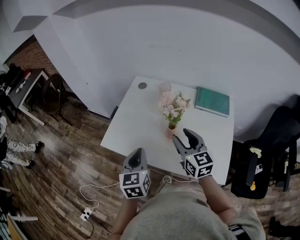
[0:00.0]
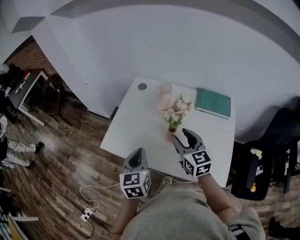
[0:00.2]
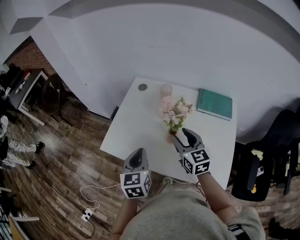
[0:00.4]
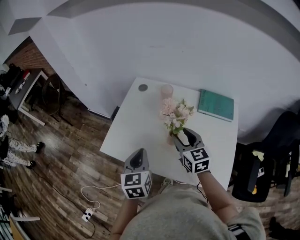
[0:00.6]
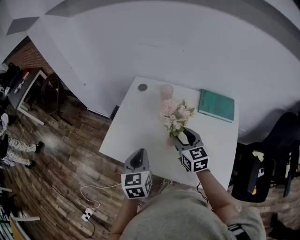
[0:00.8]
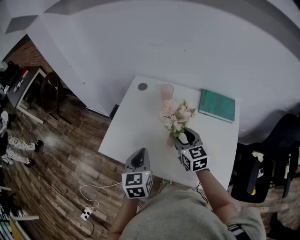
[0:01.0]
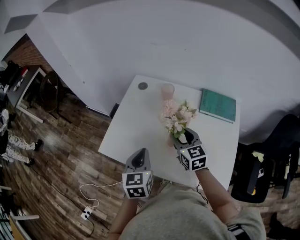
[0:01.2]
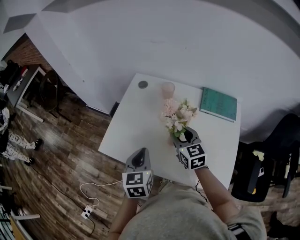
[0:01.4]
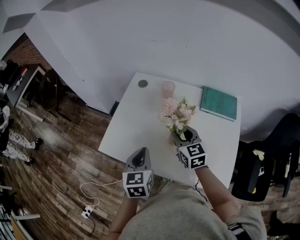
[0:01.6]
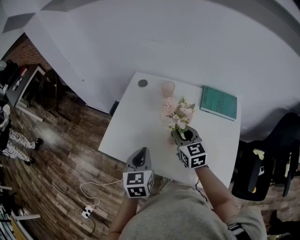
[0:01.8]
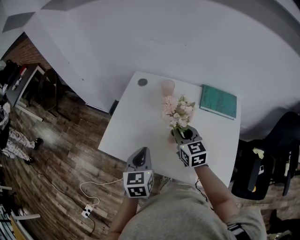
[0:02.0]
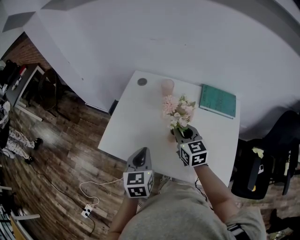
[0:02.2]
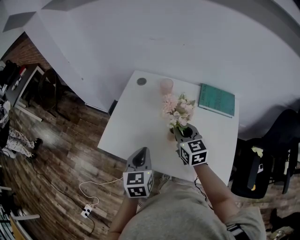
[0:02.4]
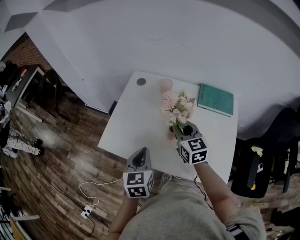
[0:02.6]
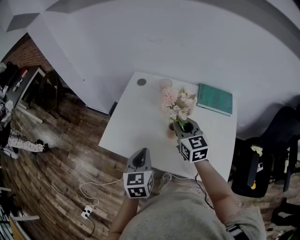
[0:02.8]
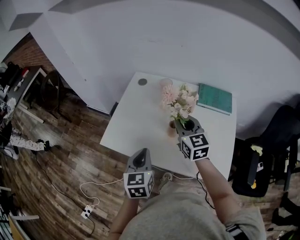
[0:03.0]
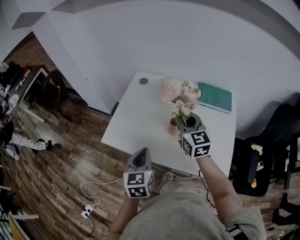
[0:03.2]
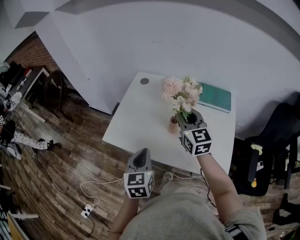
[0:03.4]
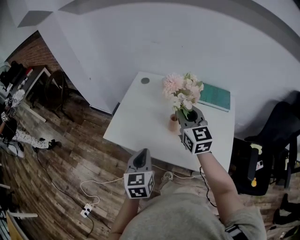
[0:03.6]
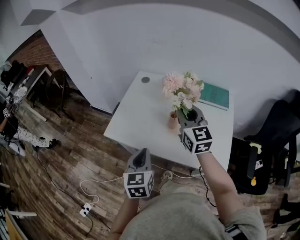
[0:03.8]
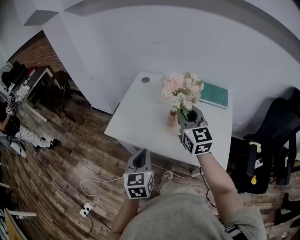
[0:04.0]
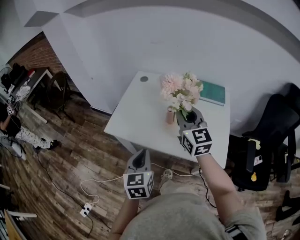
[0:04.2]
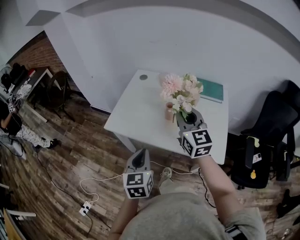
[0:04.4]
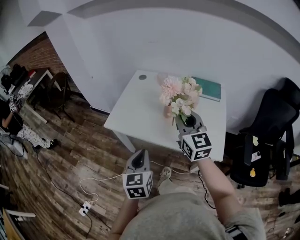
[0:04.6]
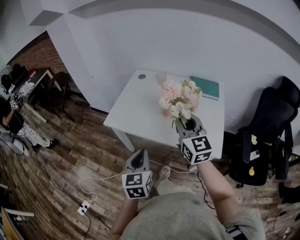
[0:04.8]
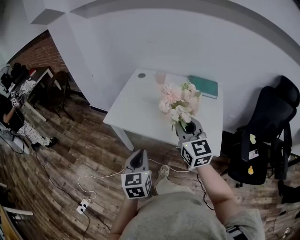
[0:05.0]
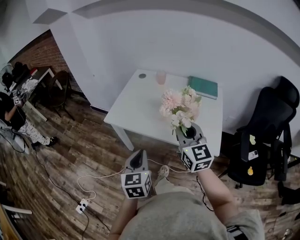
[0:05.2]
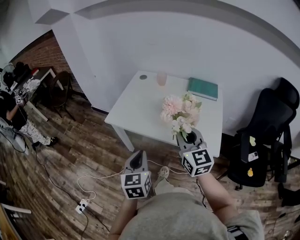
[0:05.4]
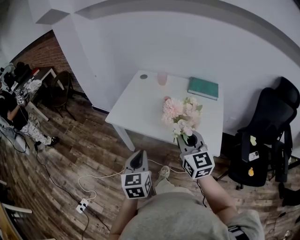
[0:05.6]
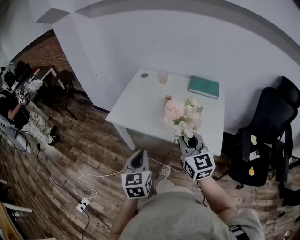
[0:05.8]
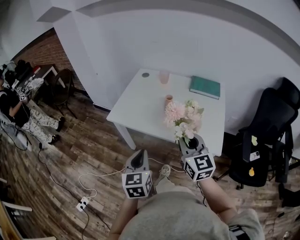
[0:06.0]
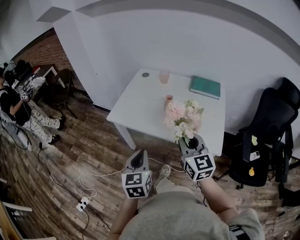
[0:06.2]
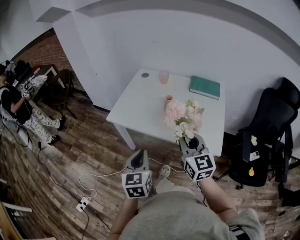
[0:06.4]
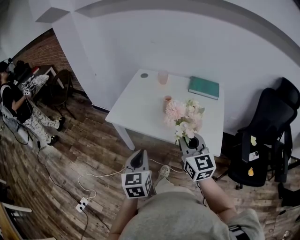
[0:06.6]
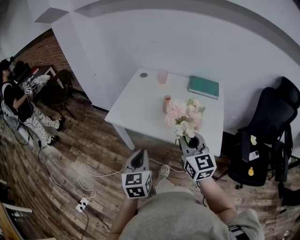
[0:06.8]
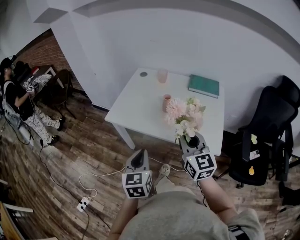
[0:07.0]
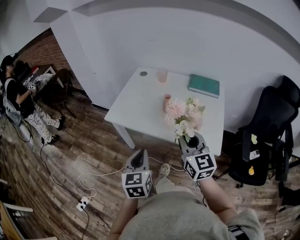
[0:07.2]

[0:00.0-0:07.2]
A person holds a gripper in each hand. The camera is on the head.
0.0 to 1.4 s: The left gripper is displaced forward by roughly 5 cm, while the right gripper goes roughly 10 cm forward and downward.
1.4 to 2.8 s: The right gripper heads upward, covering approximately 5 cm, and closes its fingers; the left gripper is displaced backward by about 5 cm.
2.8 to 4.4 s: The right gripper moves backward and upward, some 20 cm; the left gripper heads backward, covering roughly 15 cm.
4.4 to 5.8 s: The right gripper heads backward, covering roughly 15 cm, while the left gripper heads backward, covering approximately 10 cm.
5.8 to 7.2 s: Both grippers stay put.

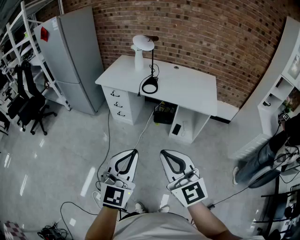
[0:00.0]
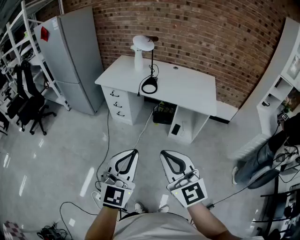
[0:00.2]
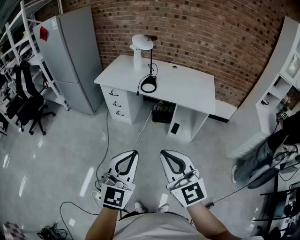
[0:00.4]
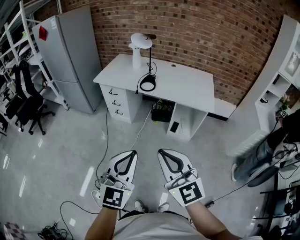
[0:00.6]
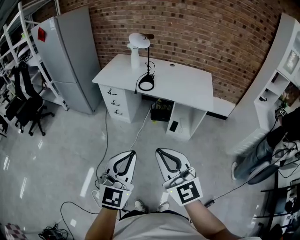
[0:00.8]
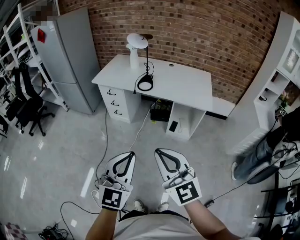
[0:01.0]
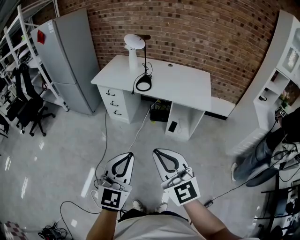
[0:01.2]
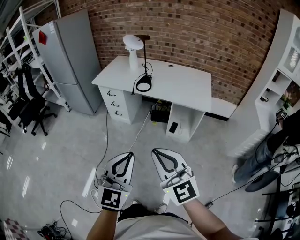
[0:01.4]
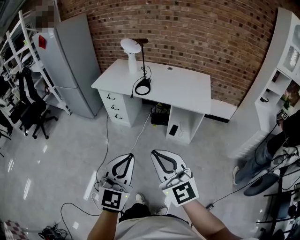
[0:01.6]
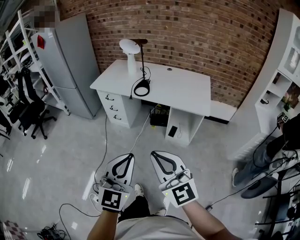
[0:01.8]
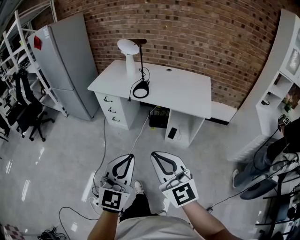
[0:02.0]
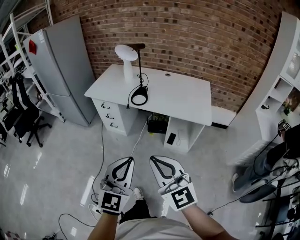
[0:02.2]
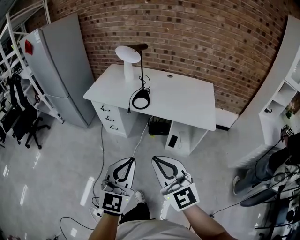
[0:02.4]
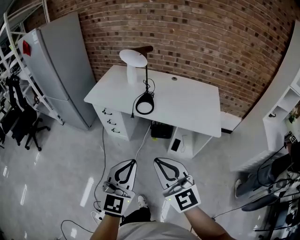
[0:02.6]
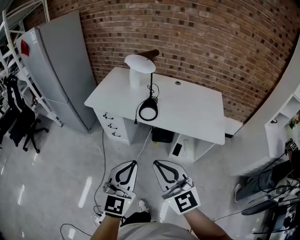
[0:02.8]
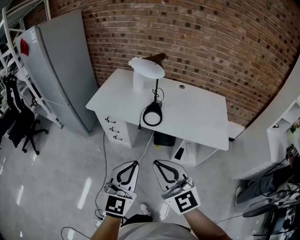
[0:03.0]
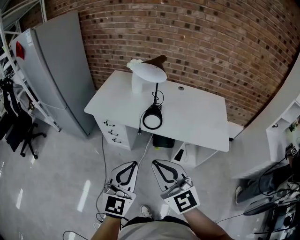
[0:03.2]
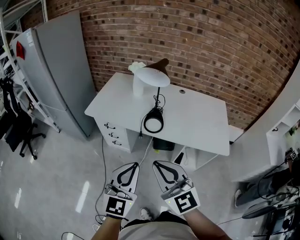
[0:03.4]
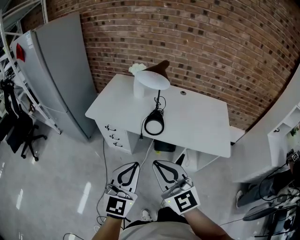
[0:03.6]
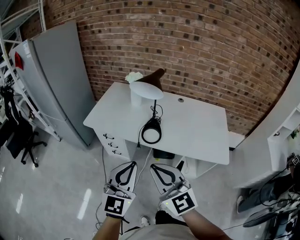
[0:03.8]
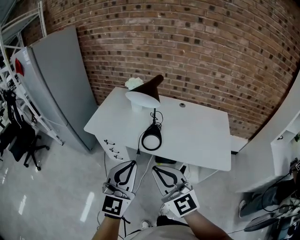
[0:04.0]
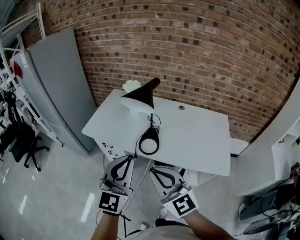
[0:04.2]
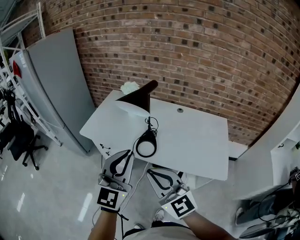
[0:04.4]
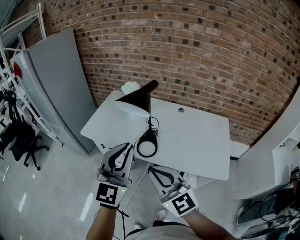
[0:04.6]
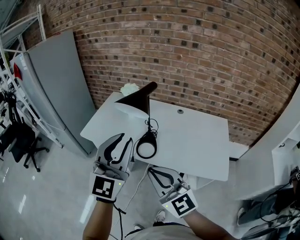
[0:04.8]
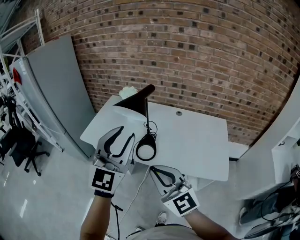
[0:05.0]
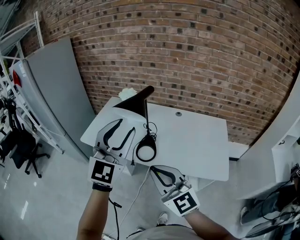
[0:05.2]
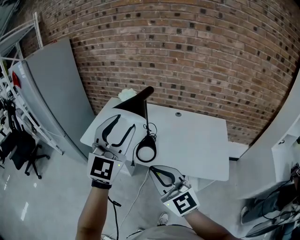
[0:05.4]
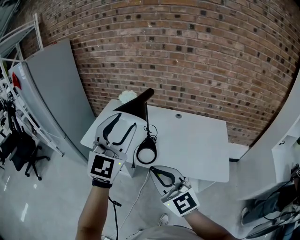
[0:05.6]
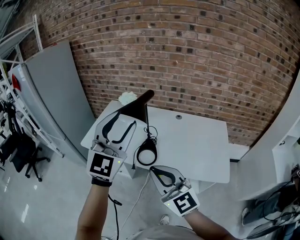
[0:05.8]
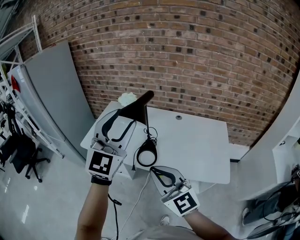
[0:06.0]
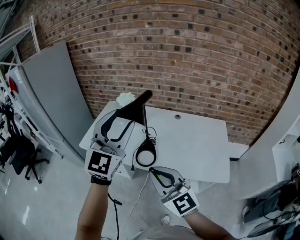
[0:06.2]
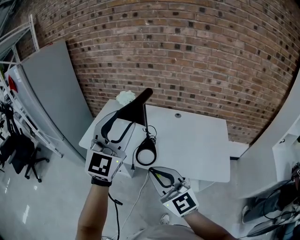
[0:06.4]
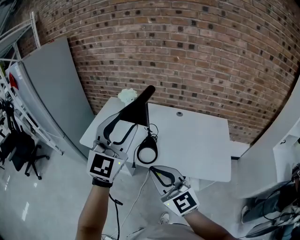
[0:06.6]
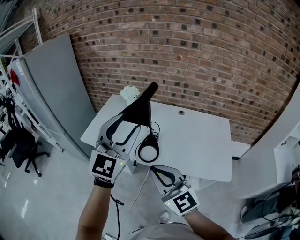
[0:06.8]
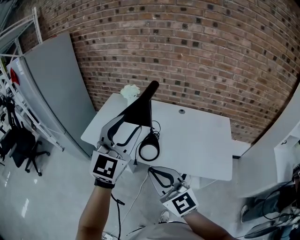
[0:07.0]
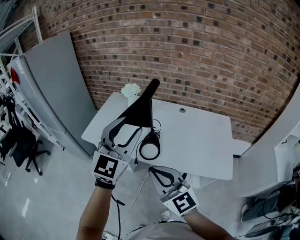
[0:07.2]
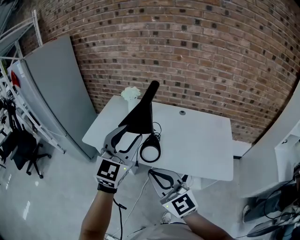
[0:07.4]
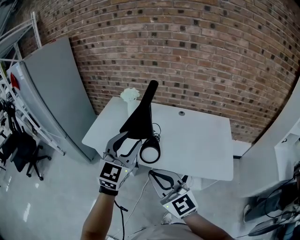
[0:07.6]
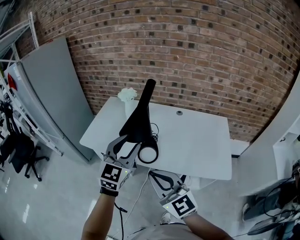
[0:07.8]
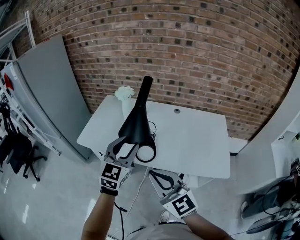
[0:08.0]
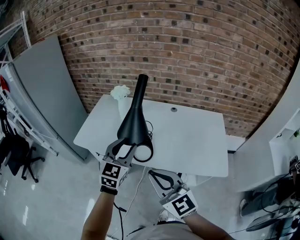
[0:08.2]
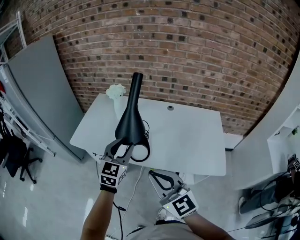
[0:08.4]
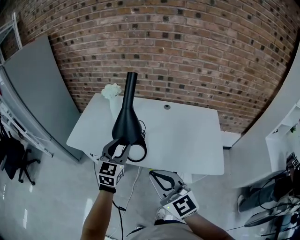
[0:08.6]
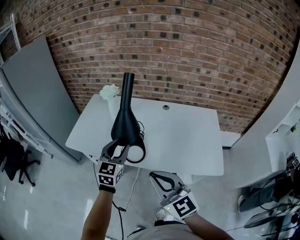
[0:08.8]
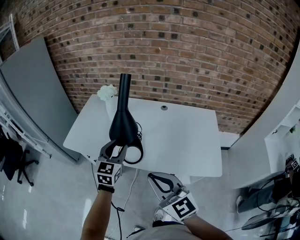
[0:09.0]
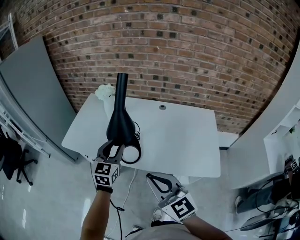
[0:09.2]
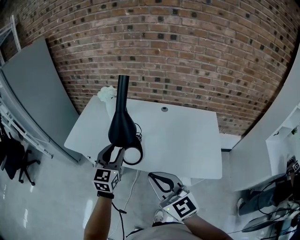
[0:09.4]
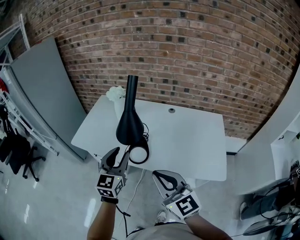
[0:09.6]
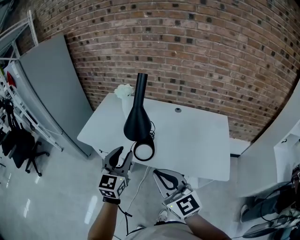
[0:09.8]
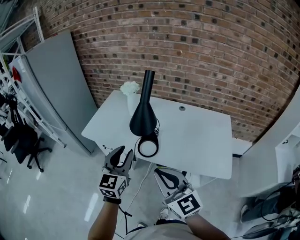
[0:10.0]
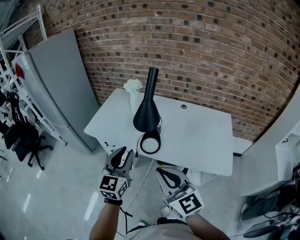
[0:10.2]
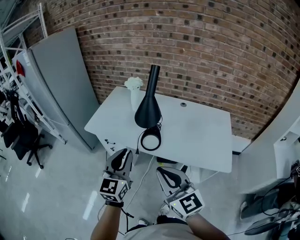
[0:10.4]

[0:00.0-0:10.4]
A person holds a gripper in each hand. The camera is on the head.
0.0 to 1.4 s: The left gripper changes place by about 5 cm.
1.4 to 3.0 s: Both grippers travel together forward, some 35 cm.
3.0 to 4.4 s: The left gripper goes approximately 20 cm forward and upward. Meanwhile the right gripper goes about 15 cm forward.
4.4 to 6.0 s: The left gripper heads upward and forward, covering approximately 15 cm, and opens its fingers.
6.0 to 7.4 s: The left gripper shifts roughly 10 cm downward.
7.4 to 9.0 s: The right gripper goes about 10 cm to the right; the left gripper heads downward and forward, covering about 20 cm, and swivels some 20 degrees.
9.0 to 10.4 s: The left gripper shifts roughly 20 cm backward, to the left and upward, and closes up, while the right gripper heads backward and to the left, covering about 10 cm.

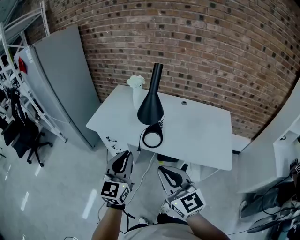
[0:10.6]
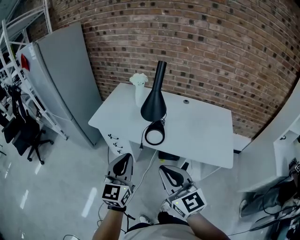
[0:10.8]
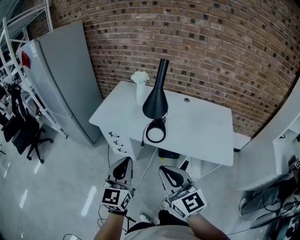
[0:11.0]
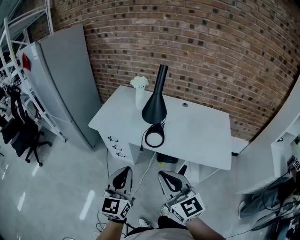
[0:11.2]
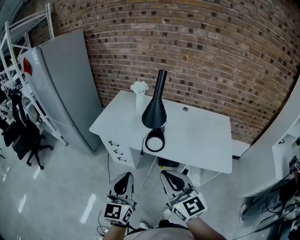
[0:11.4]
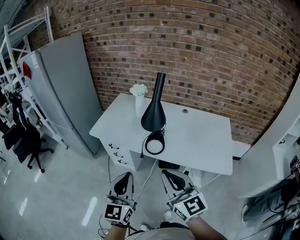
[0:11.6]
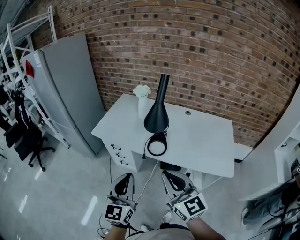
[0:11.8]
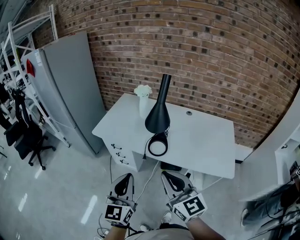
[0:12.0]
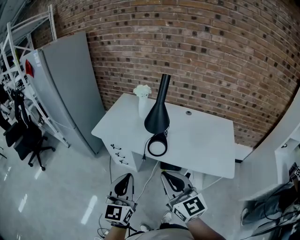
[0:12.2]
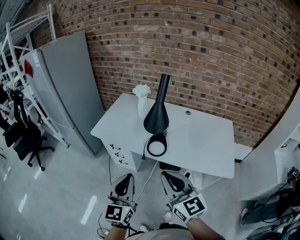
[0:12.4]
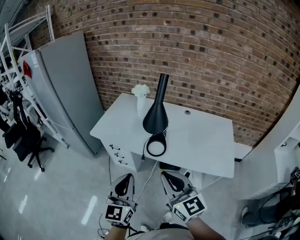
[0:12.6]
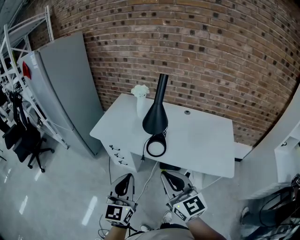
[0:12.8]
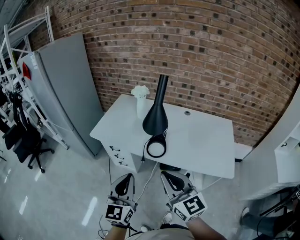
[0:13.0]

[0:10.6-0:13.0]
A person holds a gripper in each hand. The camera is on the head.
10.6 to 11.8 s: The left gripper is displaced backward by approximately 5 cm.
11.8 to 13.0 s: There are only small adjustments of the grippers.

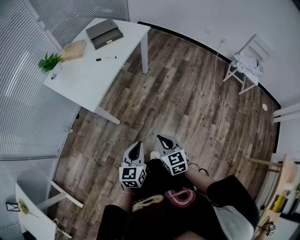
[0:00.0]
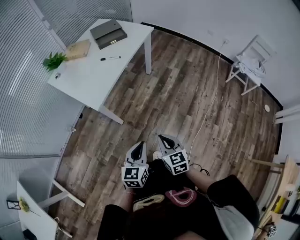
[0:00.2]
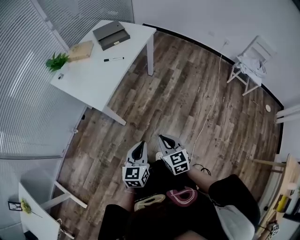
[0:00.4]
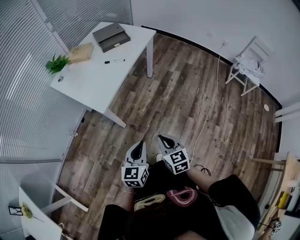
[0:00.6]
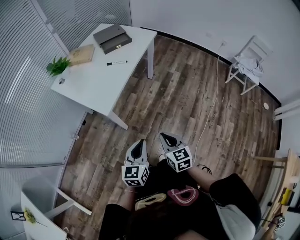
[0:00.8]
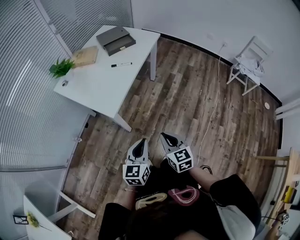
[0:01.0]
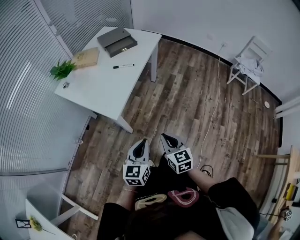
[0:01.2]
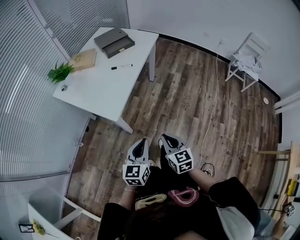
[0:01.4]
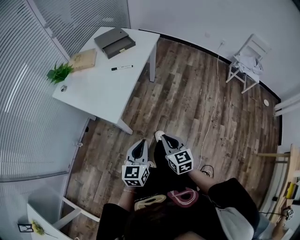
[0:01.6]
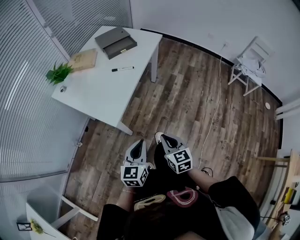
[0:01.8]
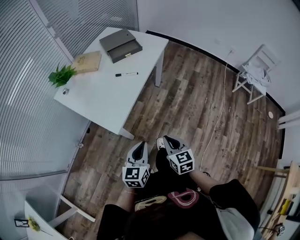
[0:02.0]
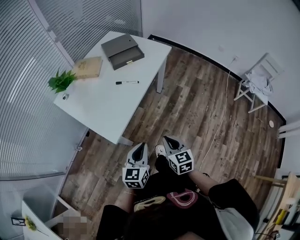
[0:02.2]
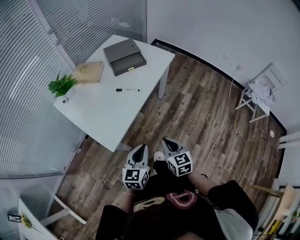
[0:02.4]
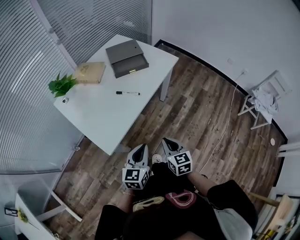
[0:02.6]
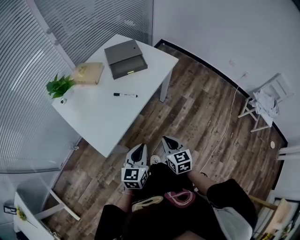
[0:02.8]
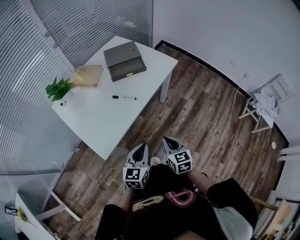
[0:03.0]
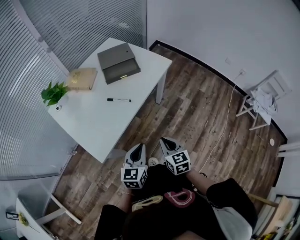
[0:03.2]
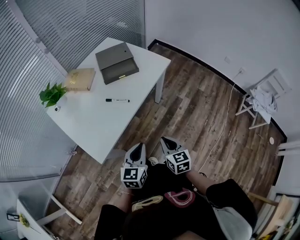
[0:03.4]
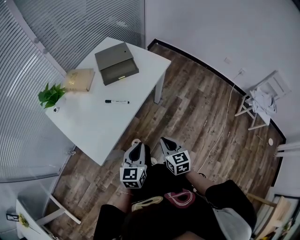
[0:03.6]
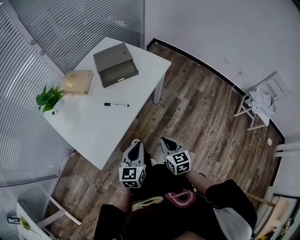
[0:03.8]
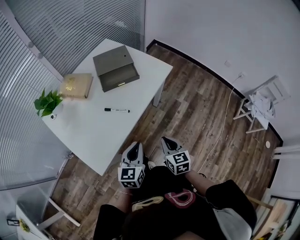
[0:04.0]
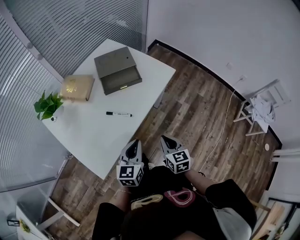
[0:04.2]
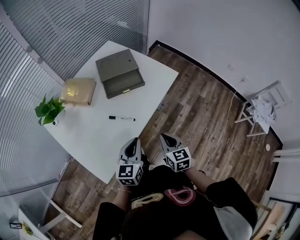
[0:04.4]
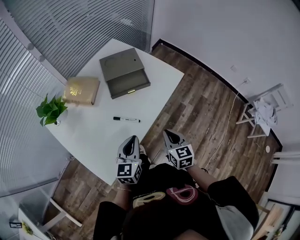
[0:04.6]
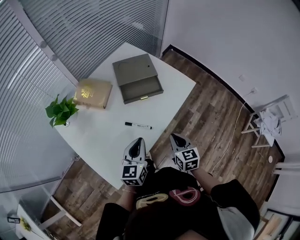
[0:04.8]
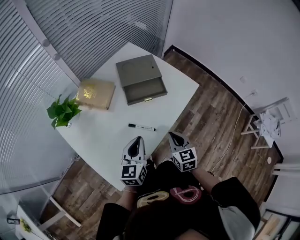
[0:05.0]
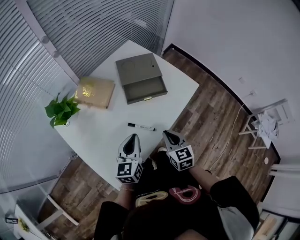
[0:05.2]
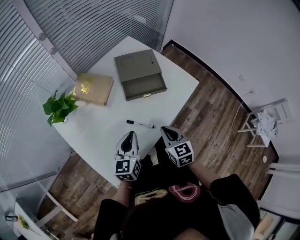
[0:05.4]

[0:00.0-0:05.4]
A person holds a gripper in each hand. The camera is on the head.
0.0 to 1.4 s: The right gripper goes some 10 cm to the left; the left gripper moves to the left and forward, roughly 15 cm.
1.4 to 2.8 s: Both grippers travel together forward, about 25 cm.
2.8 to 4.0 s: The grippers both shift forward by some 10 cm.
4.0 to 5.4 s: The two grippers go some 20 cm forward and to the left.
